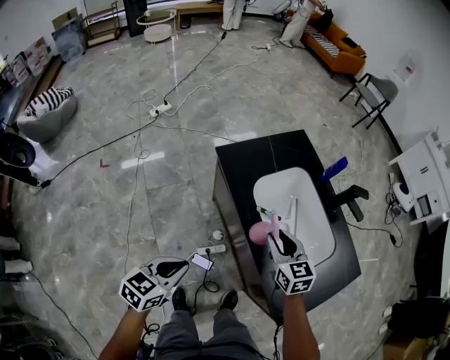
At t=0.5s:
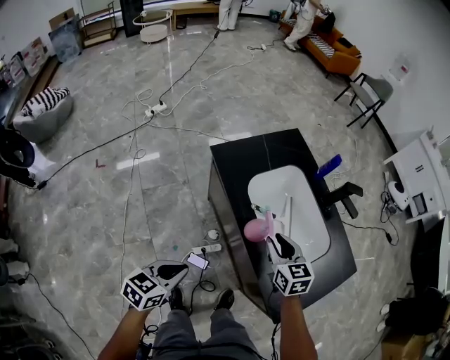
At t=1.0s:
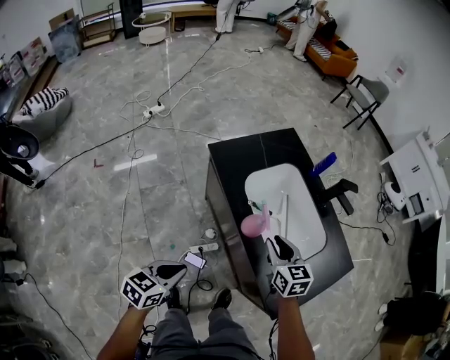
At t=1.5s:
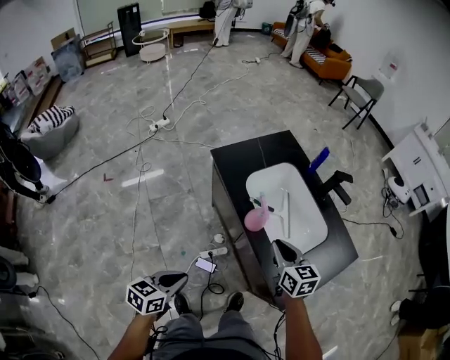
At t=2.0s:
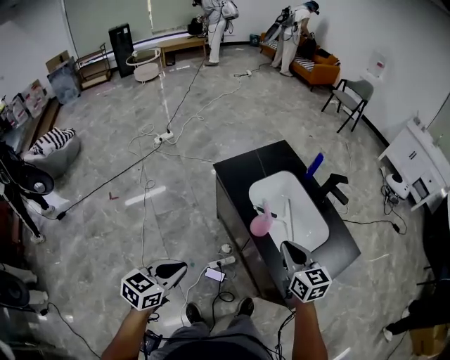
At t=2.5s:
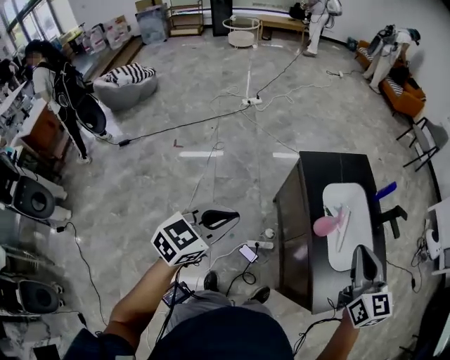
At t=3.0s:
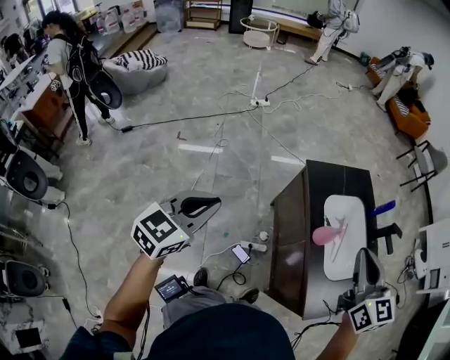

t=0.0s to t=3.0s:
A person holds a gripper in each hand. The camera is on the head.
t=0.0s to t=1.5s: The left gripper moves backward, approximately 10 cm, while the right gripper shifts approximately 10 cm backward and to the right.
t=1.5s to t=3.0s: Both grippers move upward and to the left, roughly 35 cm. The right gripper swivels approximately 20 degrees; the left gripper rotates approximately 30 degrees.

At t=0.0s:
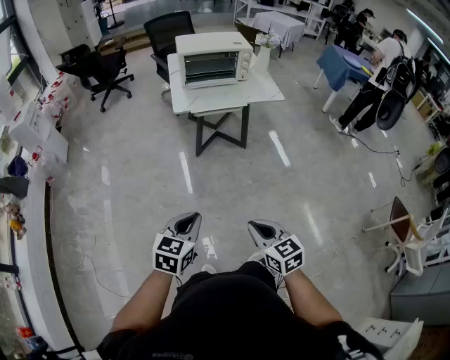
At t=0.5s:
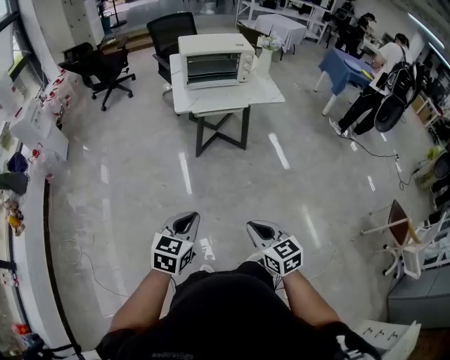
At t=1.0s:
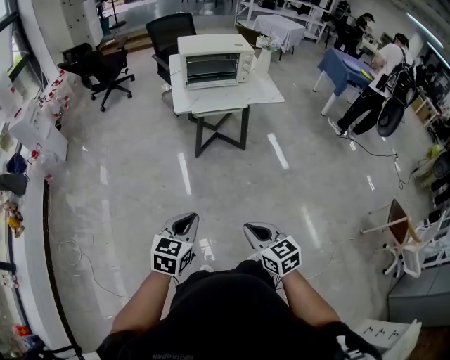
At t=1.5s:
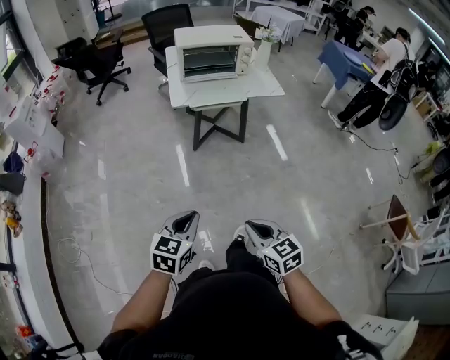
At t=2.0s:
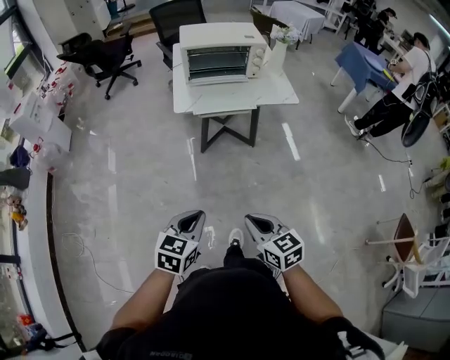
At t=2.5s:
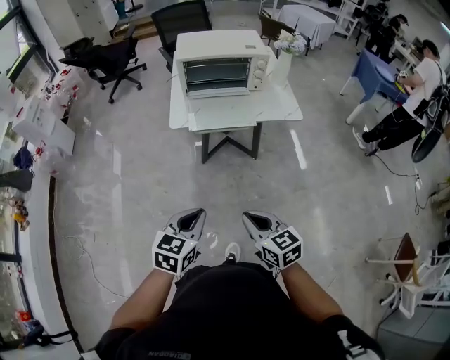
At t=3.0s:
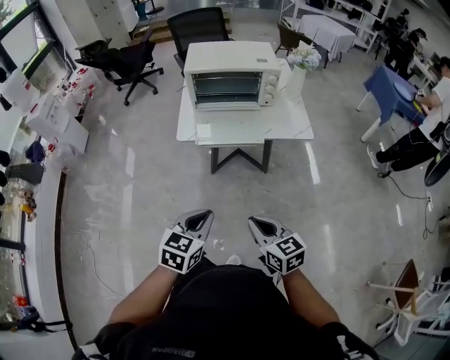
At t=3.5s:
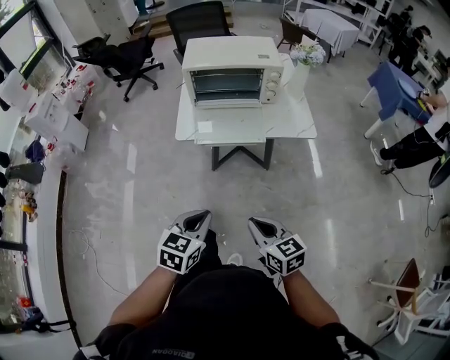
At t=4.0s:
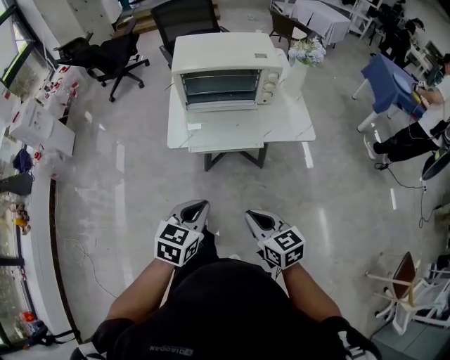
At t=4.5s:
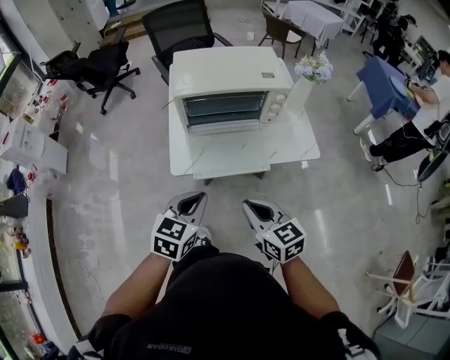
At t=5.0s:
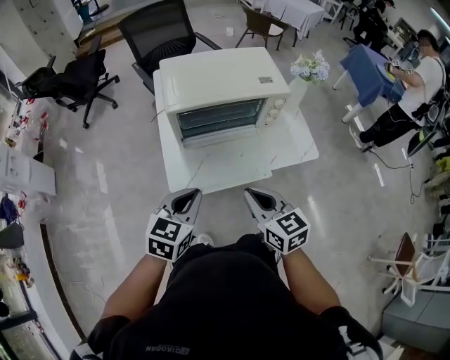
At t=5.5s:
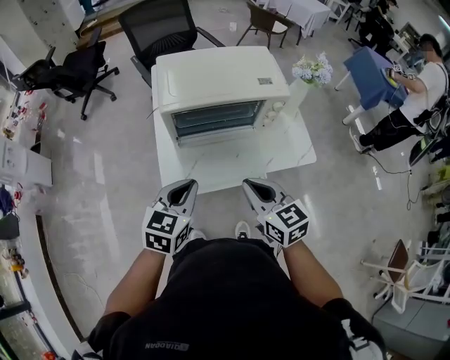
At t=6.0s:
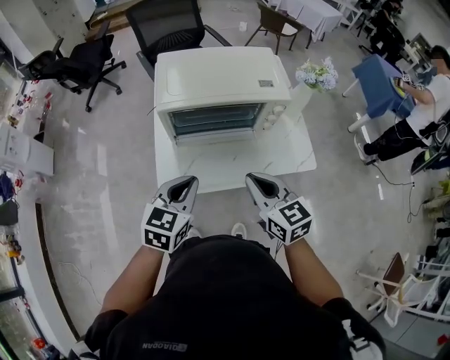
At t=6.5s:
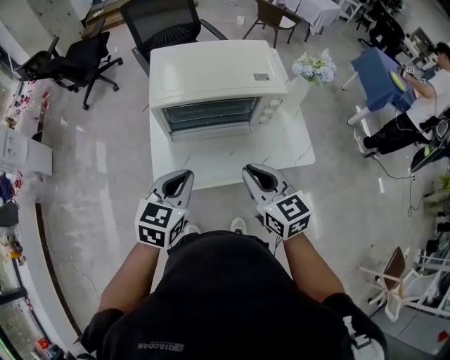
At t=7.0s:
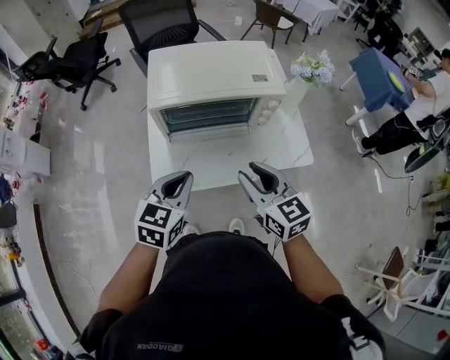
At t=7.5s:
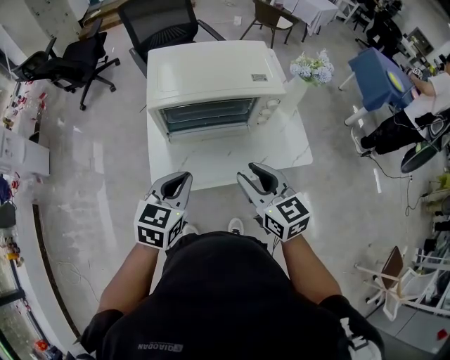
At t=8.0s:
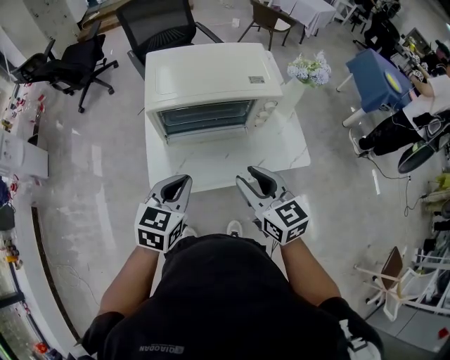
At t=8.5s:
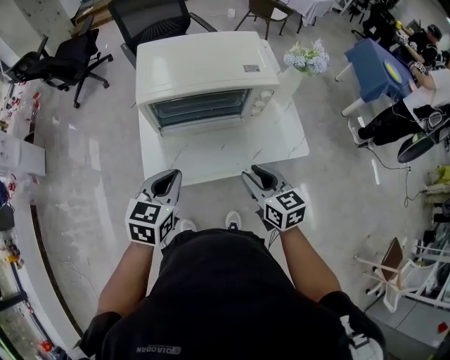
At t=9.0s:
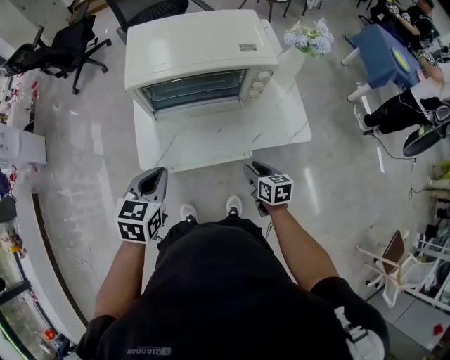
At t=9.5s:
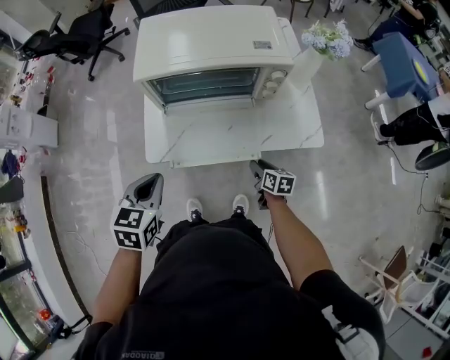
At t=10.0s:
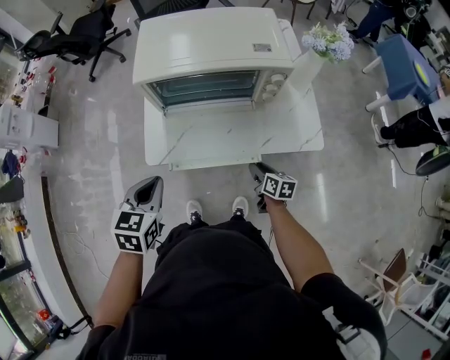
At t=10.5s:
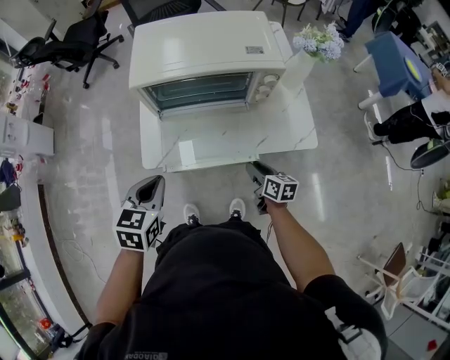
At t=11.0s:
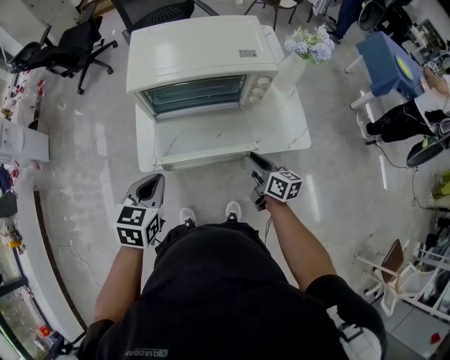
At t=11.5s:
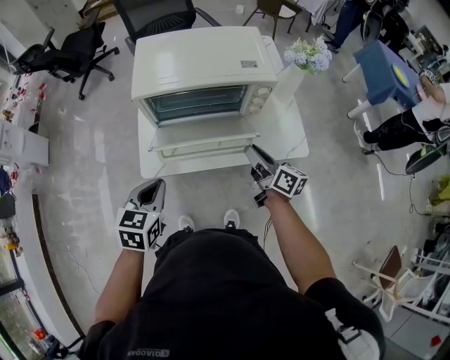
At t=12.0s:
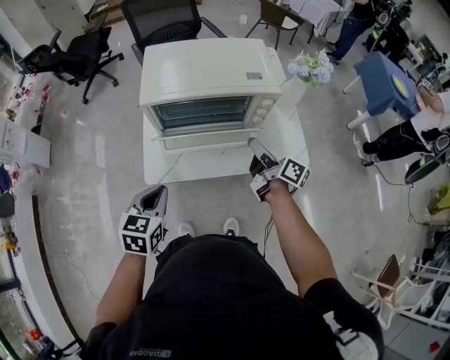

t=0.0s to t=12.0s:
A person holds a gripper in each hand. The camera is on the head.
t=0.0s to t=2.0s: Both grippers travel together forward, approximately 10 cm.
t=2.0s to t=4.0s: Both grippers move forward, approximately 25 cm.
t=4.0s to t=6.0s: The grippers both shift forward by about 25 cm.
t=6.0s to t=8.0s: The right gripper opens up.
t=8.0s to t=10.0s: The left gripper moves downward and to the left, about 10 cm; the right gripper travels downward by roughly 30 cm, and turns by about 40 degrees.
t=10.0s to t=12.0s: The right gripper goes approximately 25 cm upward and forward, and tips its fingers upward by approximately 30 degrees.

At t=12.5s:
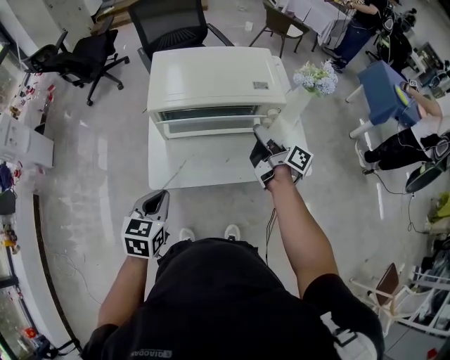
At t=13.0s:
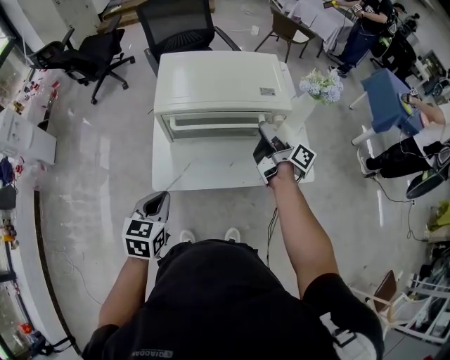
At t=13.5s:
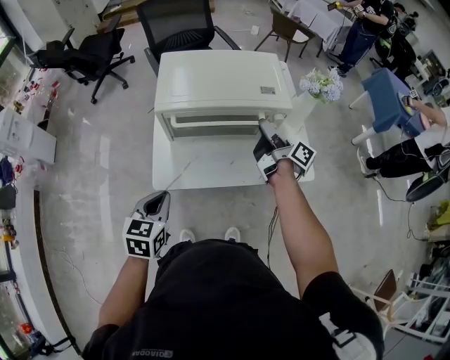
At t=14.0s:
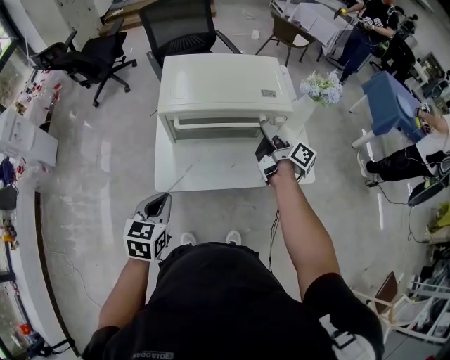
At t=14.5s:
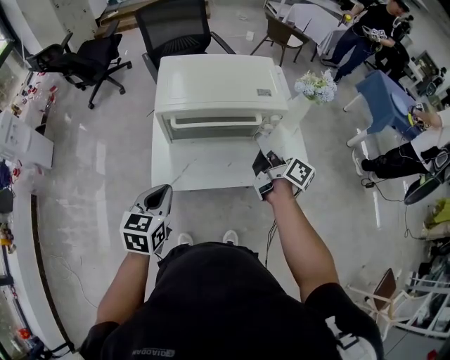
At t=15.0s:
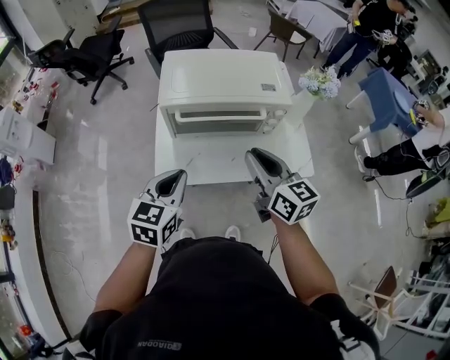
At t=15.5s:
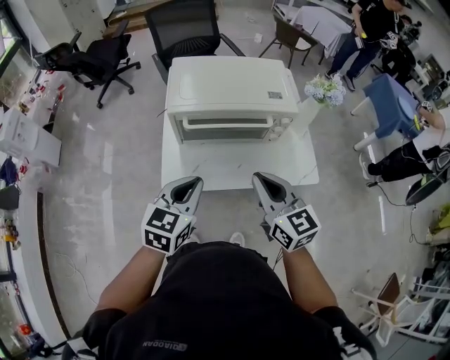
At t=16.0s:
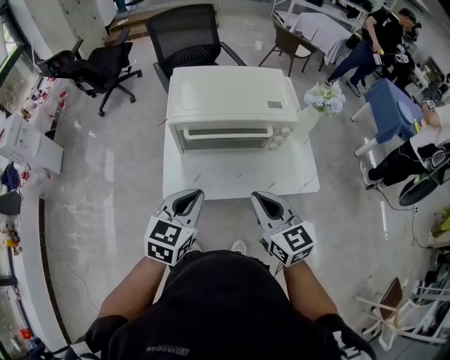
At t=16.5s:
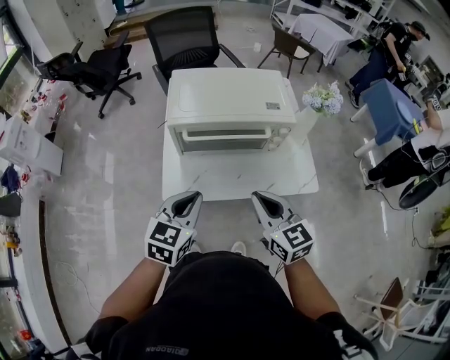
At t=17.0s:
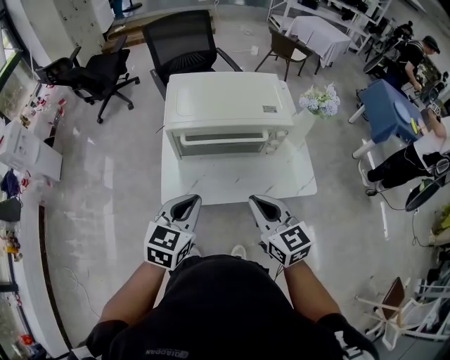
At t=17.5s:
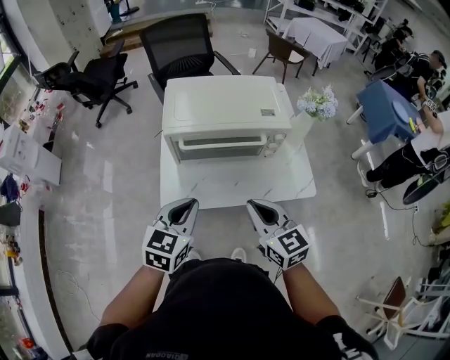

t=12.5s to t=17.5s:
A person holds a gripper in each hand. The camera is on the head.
t=12.5s to t=15.0s: The right gripper shifts approximately 15 cm backward, upward and to the left, and rotates around the line of its fingers by about 50 degrees, counterclockwise from behind. Meanwhile the left gripper goes approximately 5 cm upward.
t=15.0s to t=17.5s: The right gripper goes about 5 cm backward.

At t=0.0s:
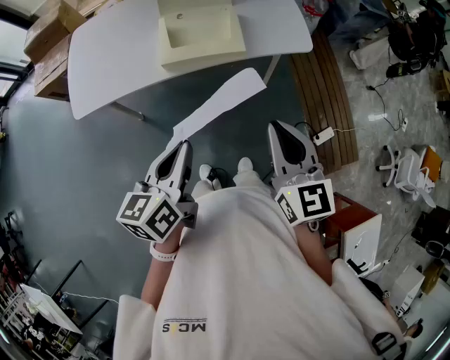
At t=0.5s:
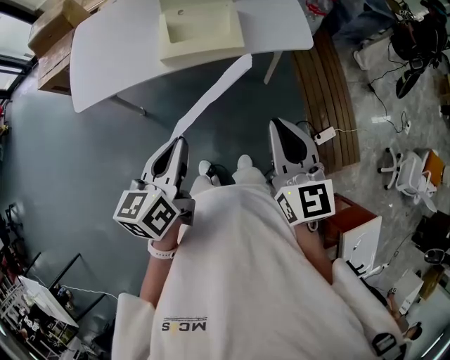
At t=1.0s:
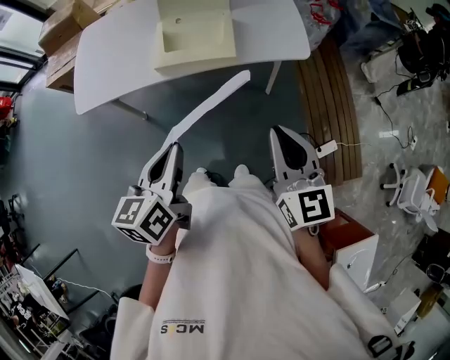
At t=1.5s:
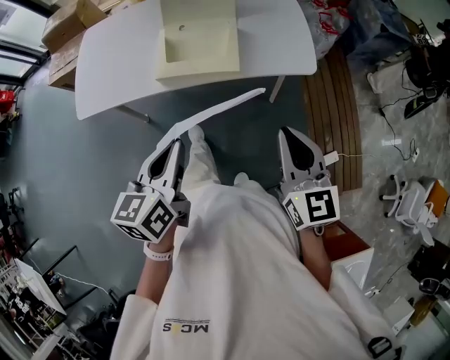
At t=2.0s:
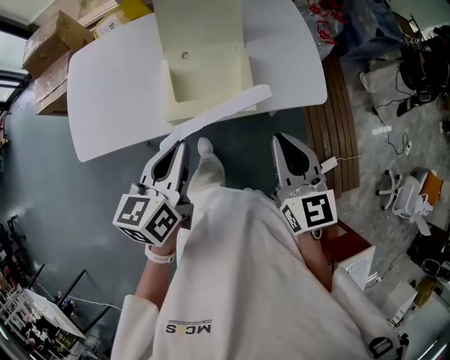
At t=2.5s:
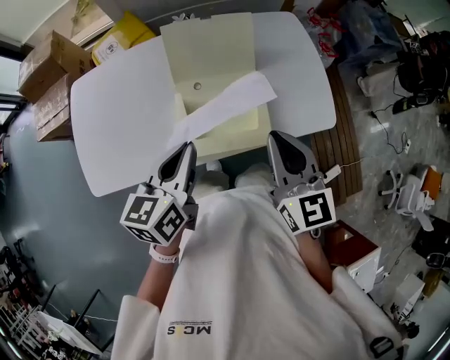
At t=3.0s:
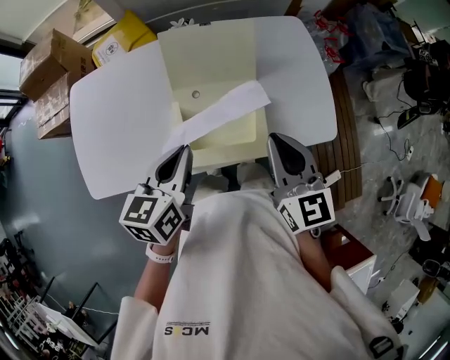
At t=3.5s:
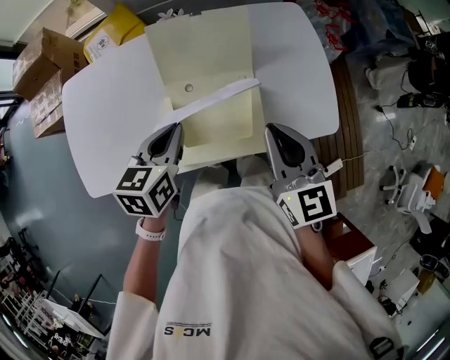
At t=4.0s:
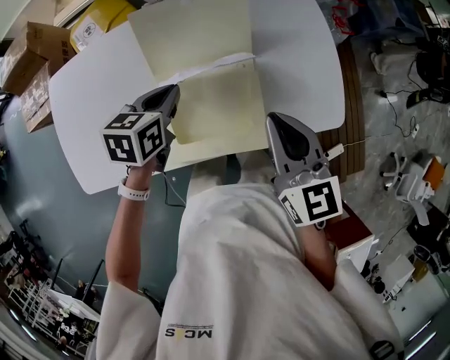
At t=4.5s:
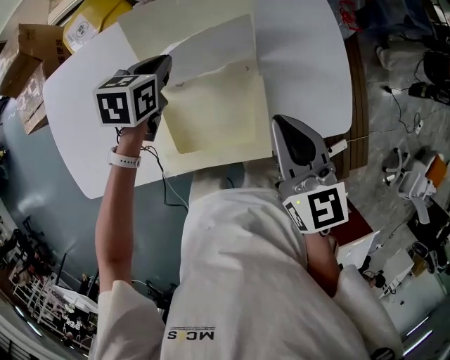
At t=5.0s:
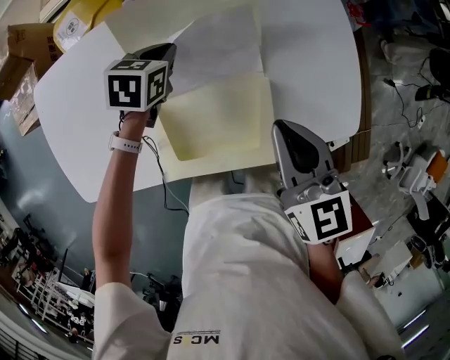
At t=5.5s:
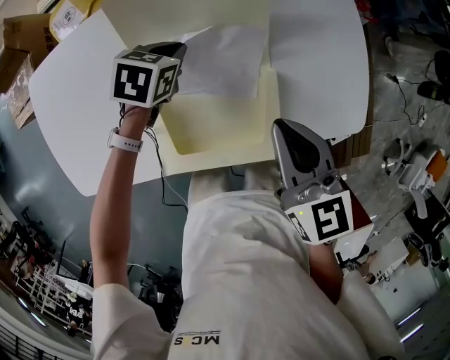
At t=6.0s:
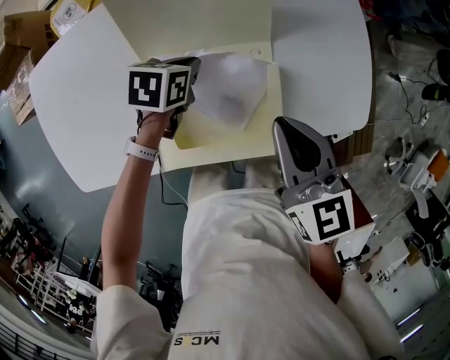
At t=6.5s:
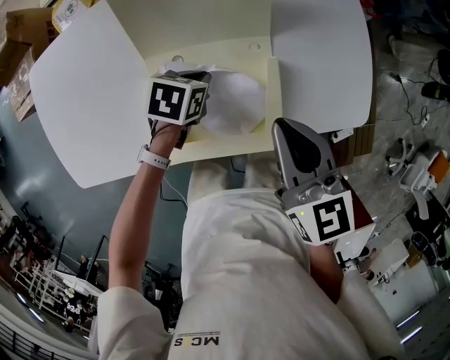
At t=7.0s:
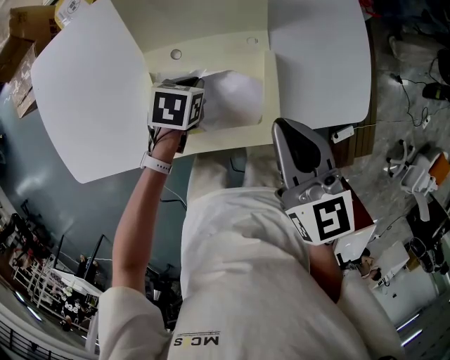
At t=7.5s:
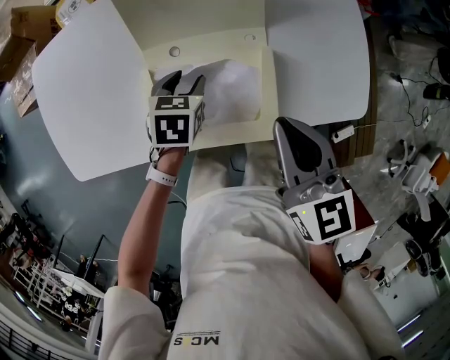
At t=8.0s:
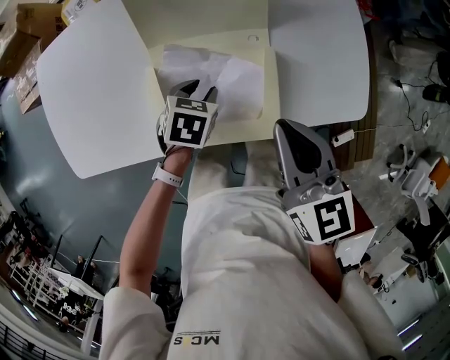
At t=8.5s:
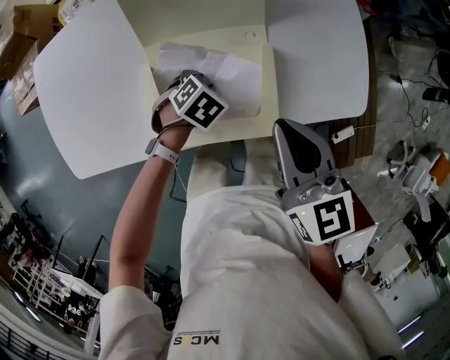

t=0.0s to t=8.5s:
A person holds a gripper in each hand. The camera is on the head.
t=0.0s to t=2.0s: The two grippers go some 20 cm forward.
t=2.0s to t=4.0s: The left gripper moves forward and downward, roughly 30 cm, and rotates some 30 degrees; the right gripper goes approximately 20 cm forward.
t=4.0s to t=6.5s: The right gripper heads downward, covering approximately 5 cm, while the left gripper goes roughly 15 cm downward, and turns by roughly 20 degrees.
t=6.5s to t=8.5s: The left gripper changes place by some 5 cm, rotates some 30 degrees, and opens.
